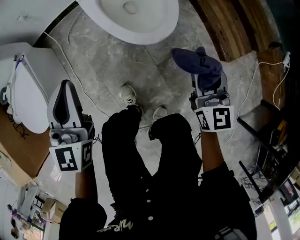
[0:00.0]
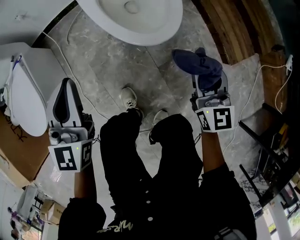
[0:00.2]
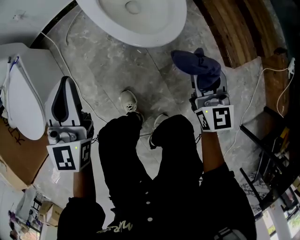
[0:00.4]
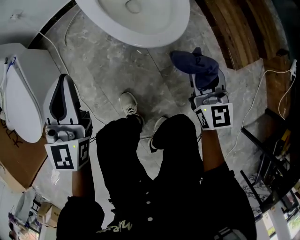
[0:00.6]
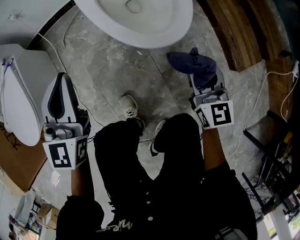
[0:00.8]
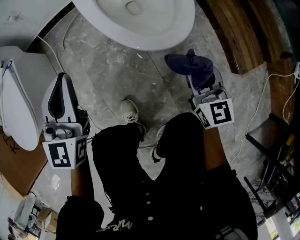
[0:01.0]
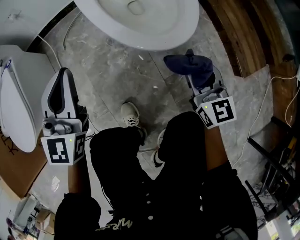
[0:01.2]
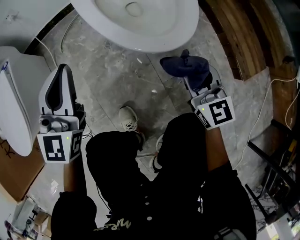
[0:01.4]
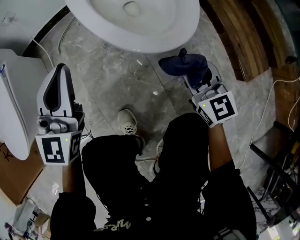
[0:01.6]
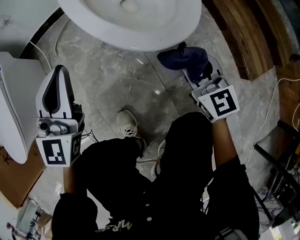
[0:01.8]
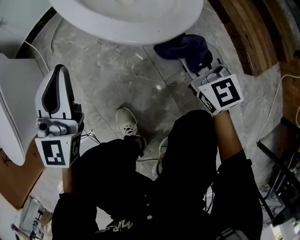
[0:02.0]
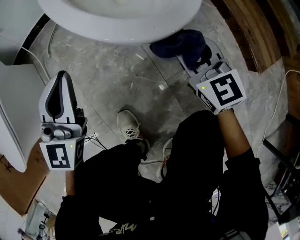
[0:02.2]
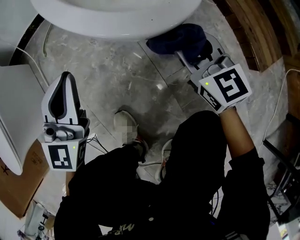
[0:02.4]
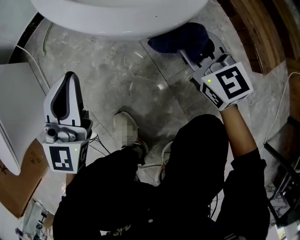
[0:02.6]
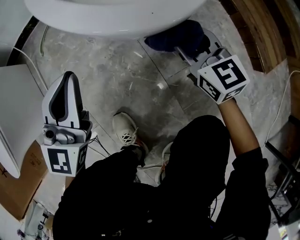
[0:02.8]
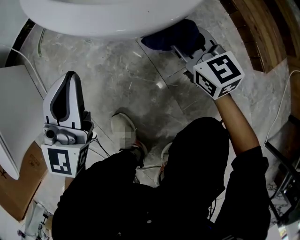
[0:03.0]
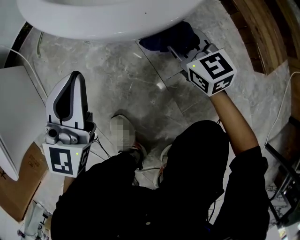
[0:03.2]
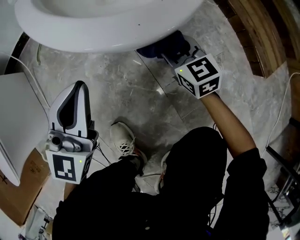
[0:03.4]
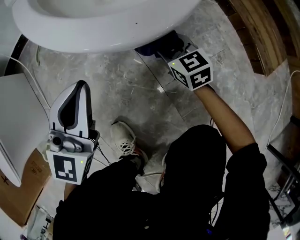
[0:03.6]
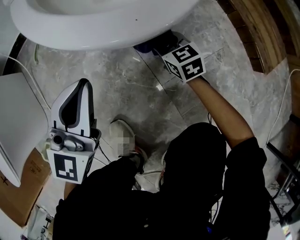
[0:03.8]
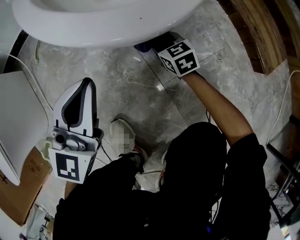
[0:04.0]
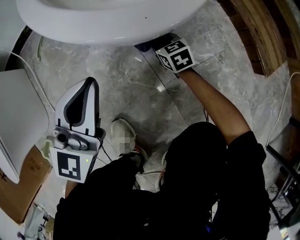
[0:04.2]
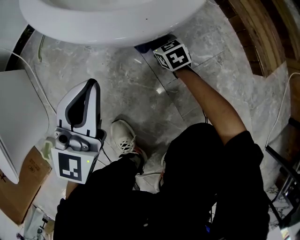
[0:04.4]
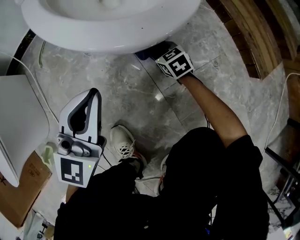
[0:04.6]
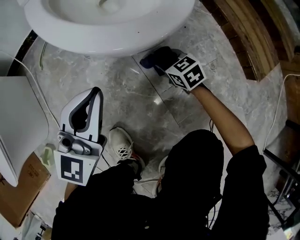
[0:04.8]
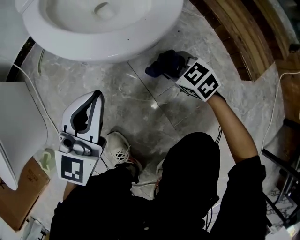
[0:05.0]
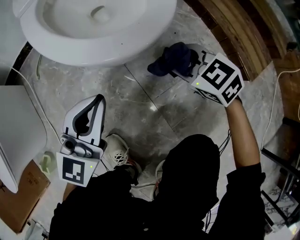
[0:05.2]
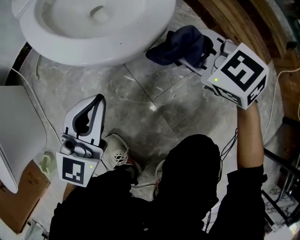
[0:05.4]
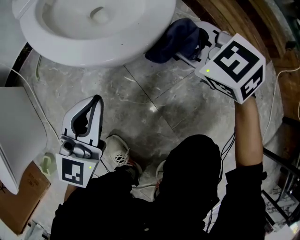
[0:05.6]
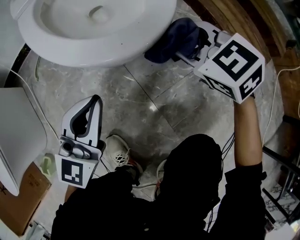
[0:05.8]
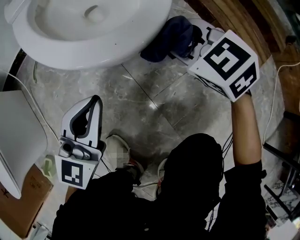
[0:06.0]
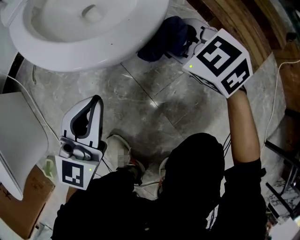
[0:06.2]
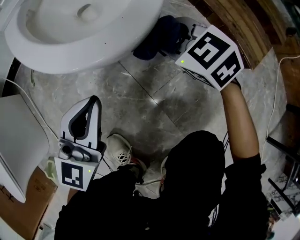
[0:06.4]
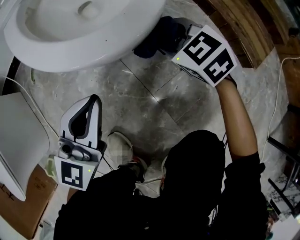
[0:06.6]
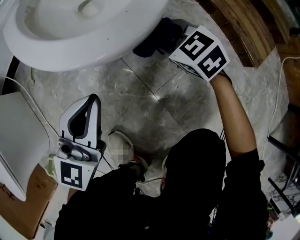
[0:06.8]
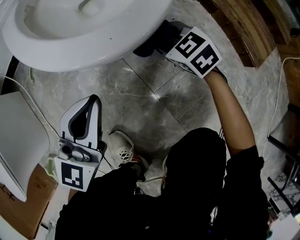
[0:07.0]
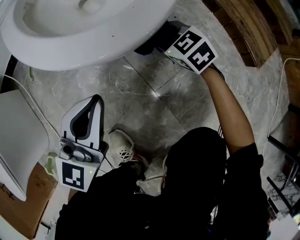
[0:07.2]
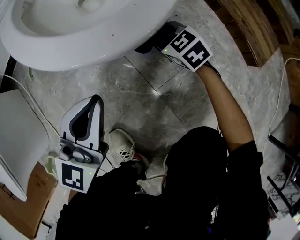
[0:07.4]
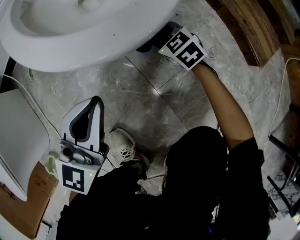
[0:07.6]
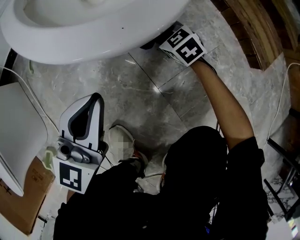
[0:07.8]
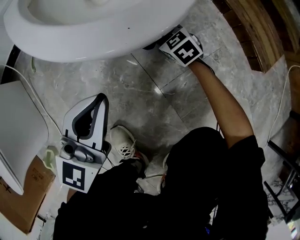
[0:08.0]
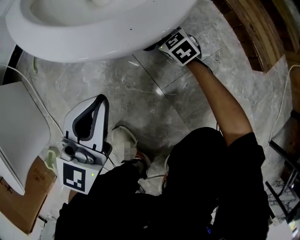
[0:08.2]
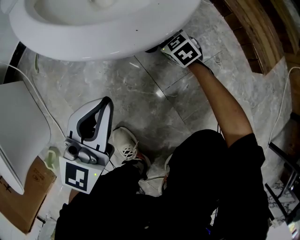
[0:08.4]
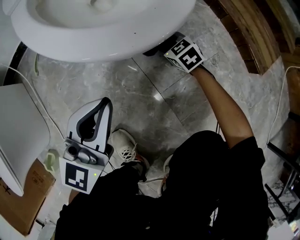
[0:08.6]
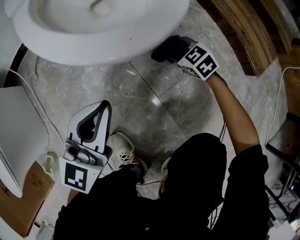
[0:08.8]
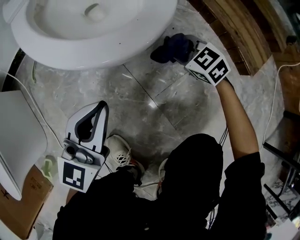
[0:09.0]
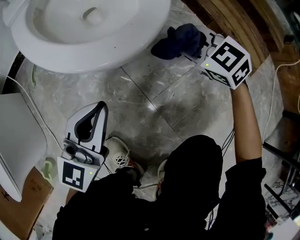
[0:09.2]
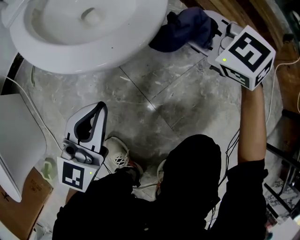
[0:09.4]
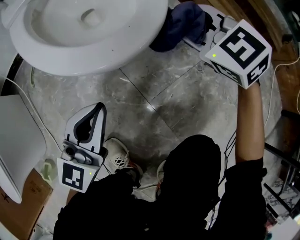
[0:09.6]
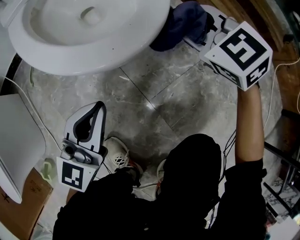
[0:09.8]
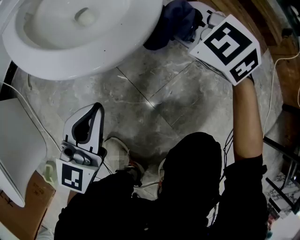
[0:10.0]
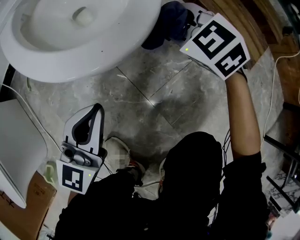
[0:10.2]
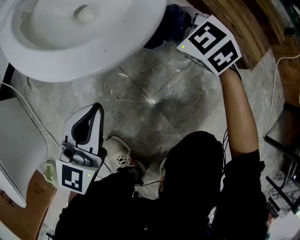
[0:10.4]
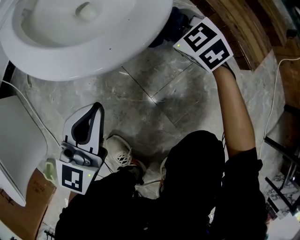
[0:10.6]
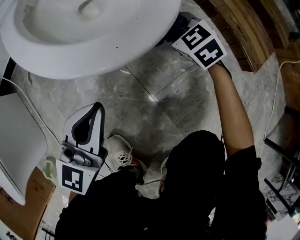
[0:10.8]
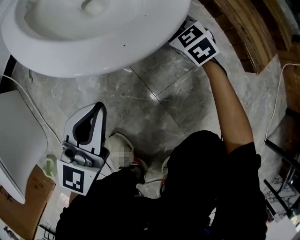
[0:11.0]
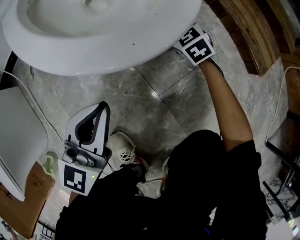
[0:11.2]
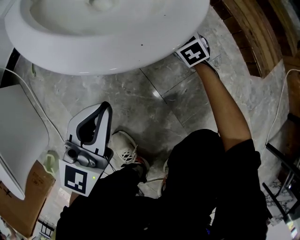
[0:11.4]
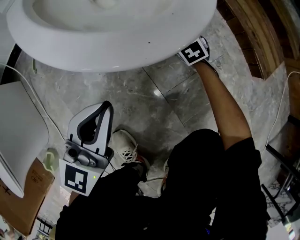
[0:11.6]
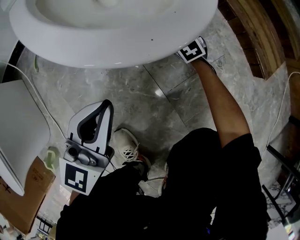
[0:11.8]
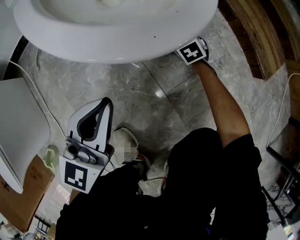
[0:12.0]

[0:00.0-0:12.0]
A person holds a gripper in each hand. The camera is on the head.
0:00.0 to 0:01.6: The grippers both shift downward by about 20 cm. The right gripper swivels some 20 degrees.
0:01.6 to 0:03.0: The left gripper heads downward and to the right, covering about 15 cm; the right gripper shifts approximately 15 cm downward and forward.
0:03.0 to 0:04.4: The right gripper is displaced downward by about 20 cm, and rotates some 30 degrees.
0:04.4 to 0:06.0: The right gripper travels upward by approximately 30 cm, and changes its angle by roughly 20 degrees.
0:06.0 to 0:07.6: The right gripper moves downward, roughly 20 cm.
0:07.6 to 0:09.0: The right gripper moves upward and to the right, some 10 cm.
0:09.0 to 0:10.4: The right gripper goes approximately 10 cm upward.
0:10.4 to 0:12.0: The right gripper shifts about 20 cm downward.

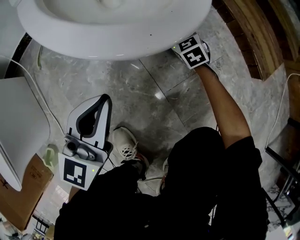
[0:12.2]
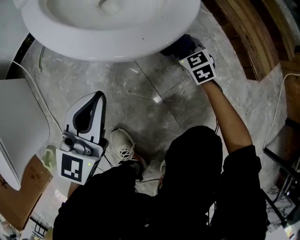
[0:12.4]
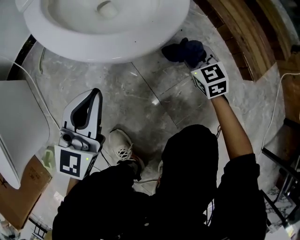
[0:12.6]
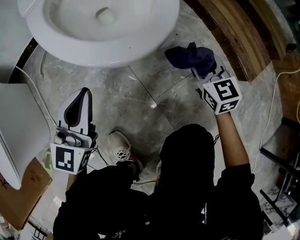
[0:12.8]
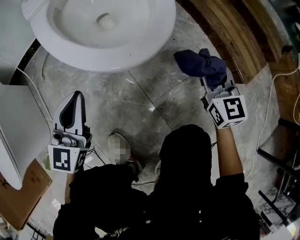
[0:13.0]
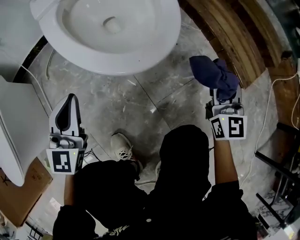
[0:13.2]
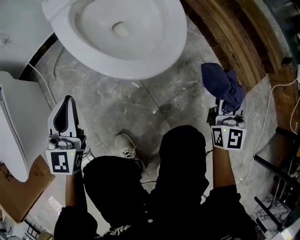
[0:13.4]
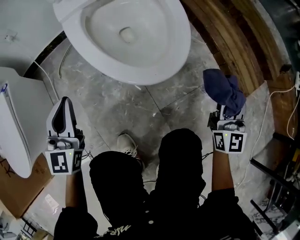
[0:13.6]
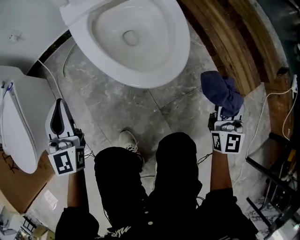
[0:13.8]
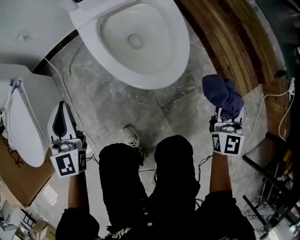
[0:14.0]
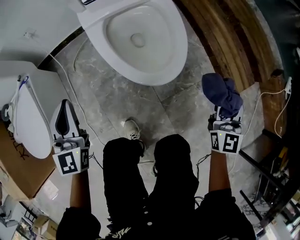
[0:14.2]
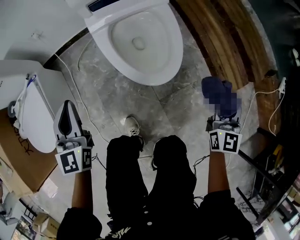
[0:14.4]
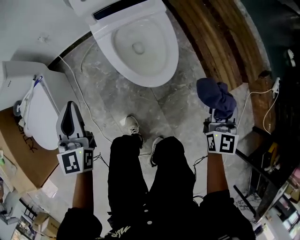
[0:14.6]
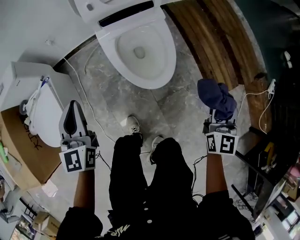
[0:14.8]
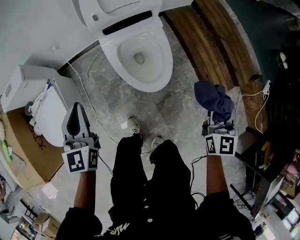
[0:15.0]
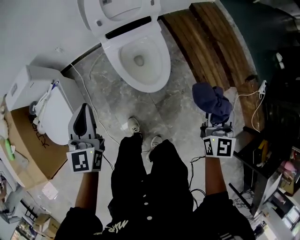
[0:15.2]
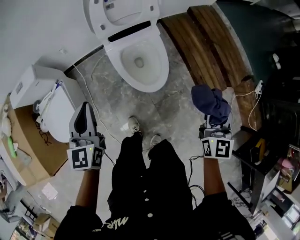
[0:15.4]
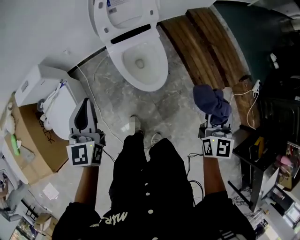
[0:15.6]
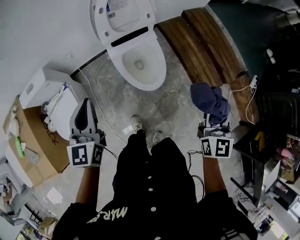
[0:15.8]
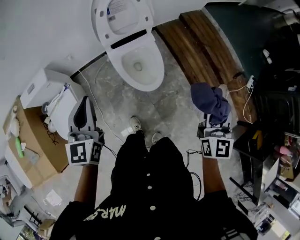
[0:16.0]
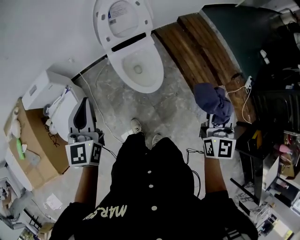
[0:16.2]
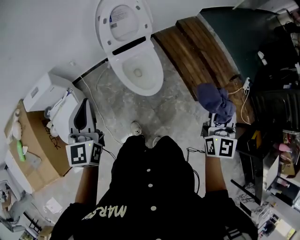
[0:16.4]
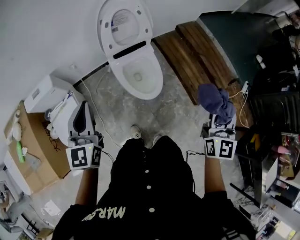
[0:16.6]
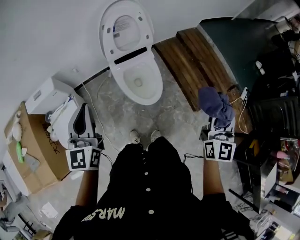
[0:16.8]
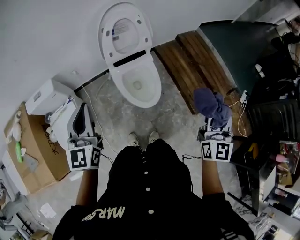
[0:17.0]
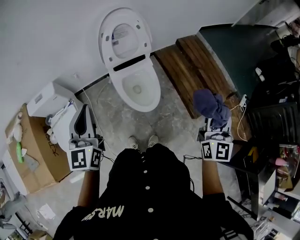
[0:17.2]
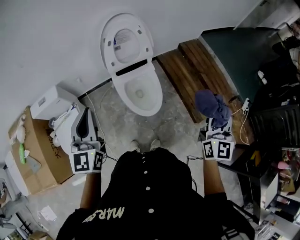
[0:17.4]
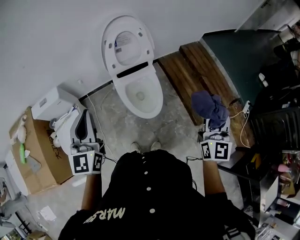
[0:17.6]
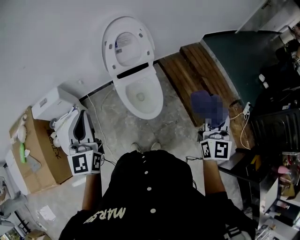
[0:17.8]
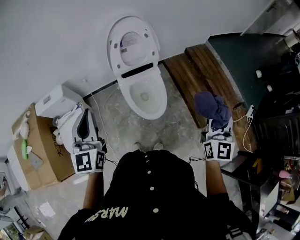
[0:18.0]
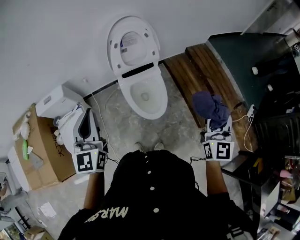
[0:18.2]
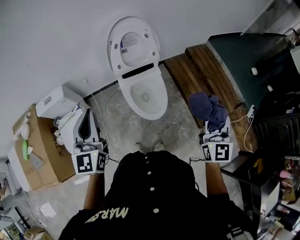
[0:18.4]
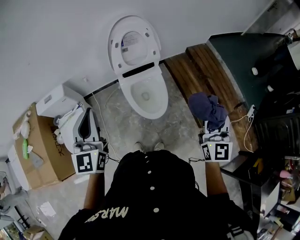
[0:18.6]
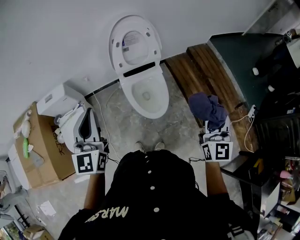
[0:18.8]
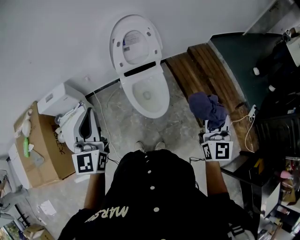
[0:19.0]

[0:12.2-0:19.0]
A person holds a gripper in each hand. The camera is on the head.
0:12.2 to 0:13.6: The right gripper travels upward by roughly 35 cm, and tilts its fingers about 50 degrees upward. Meanwhile the left gripper heads to the left and upward, covering some 20 cm, and swivels roughly 30 degrees.
0:13.6 to 0:15.0: Both grippers travel together upward, roughly 35 cm. The left gripper swivels about 20 degrees.
0:15.0 to 0:16.2: The two grippers go roughly 25 cm upward.
0:16.2 to 0:17.6: The two grippers go about 5 cm upward.
0:17.6 to 0:19.0: The grippers stay close to where they were, moving slightly.

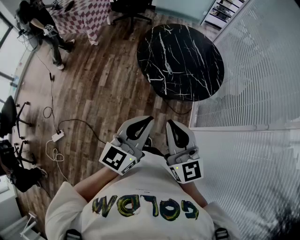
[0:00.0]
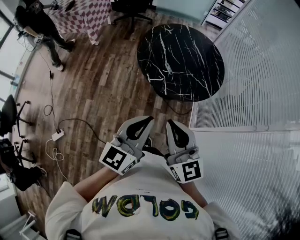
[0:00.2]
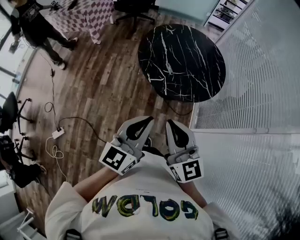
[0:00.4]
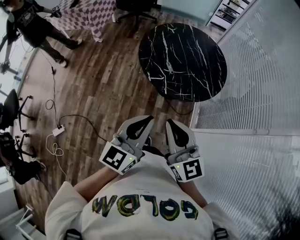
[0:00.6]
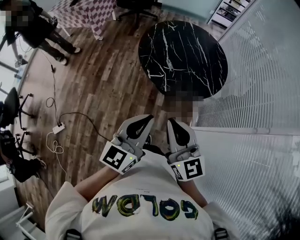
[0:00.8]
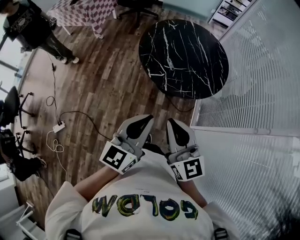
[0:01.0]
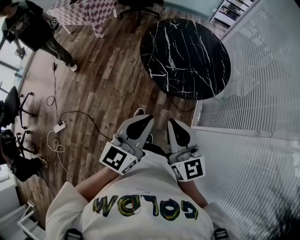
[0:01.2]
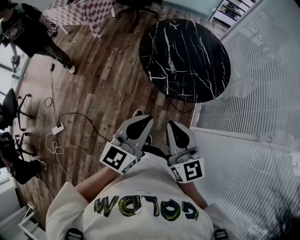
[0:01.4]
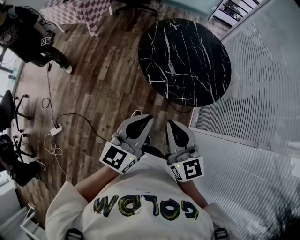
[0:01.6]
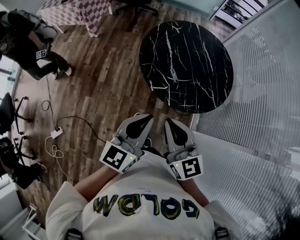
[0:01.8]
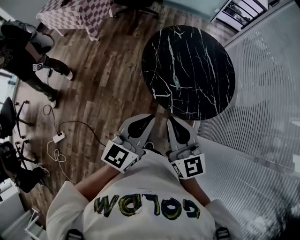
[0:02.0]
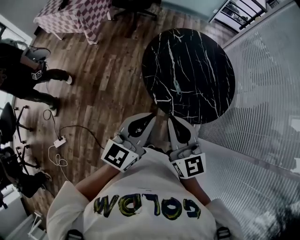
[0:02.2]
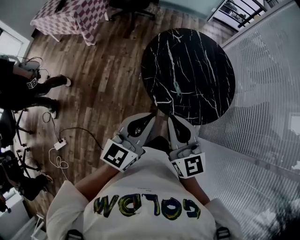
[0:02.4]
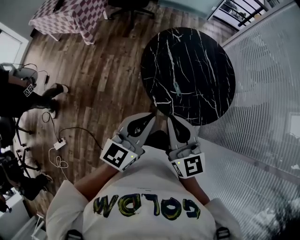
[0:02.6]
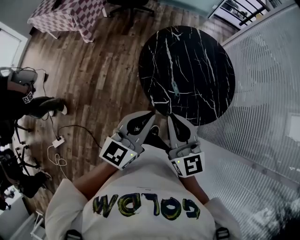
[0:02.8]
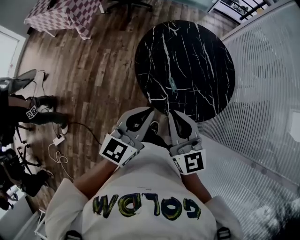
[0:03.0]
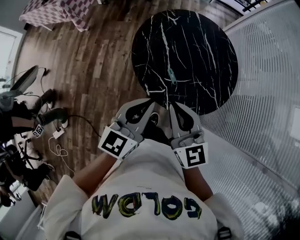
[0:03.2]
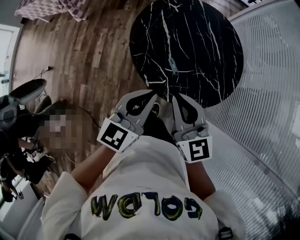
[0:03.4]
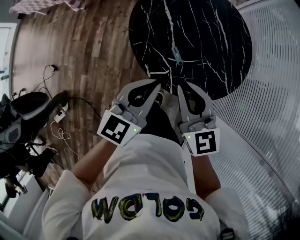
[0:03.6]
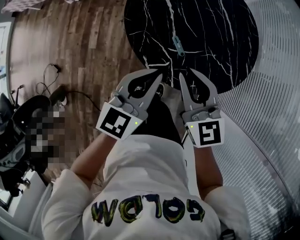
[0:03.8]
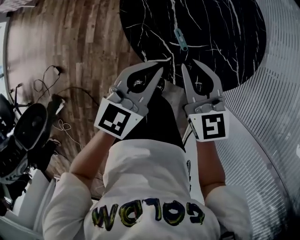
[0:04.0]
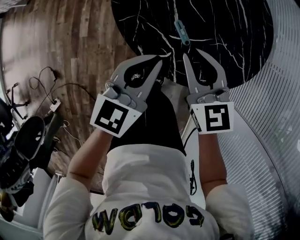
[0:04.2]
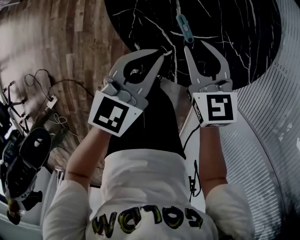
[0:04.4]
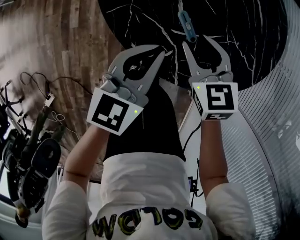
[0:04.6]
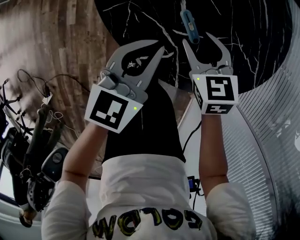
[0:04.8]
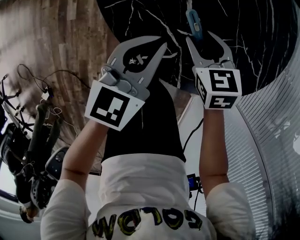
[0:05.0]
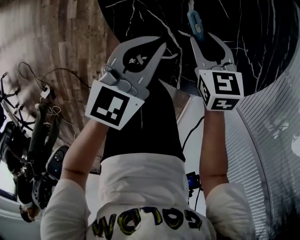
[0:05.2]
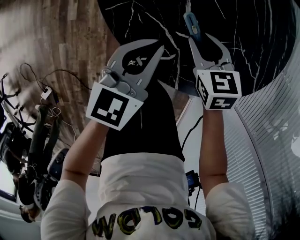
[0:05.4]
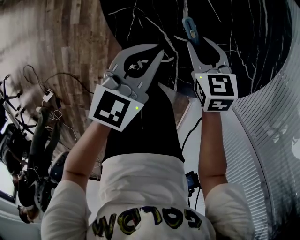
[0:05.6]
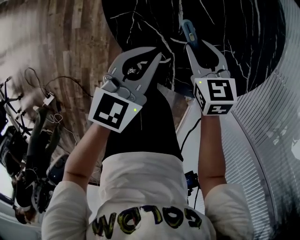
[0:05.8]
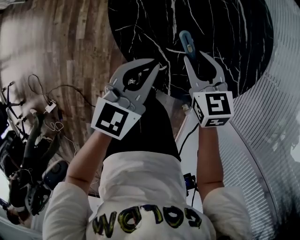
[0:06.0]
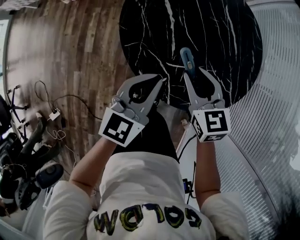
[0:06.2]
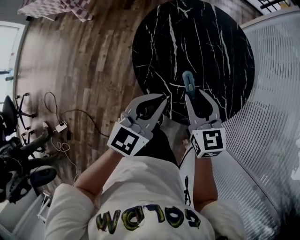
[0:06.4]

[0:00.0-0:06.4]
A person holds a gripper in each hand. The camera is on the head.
0:00.0 to 0:01.6: Both grippers move forward, about 10 cm.
0:01.6 to 0:03.2: The two grippers go roughly 20 cm forward.
0:03.2 to 0:04.8: The grippers both shift downward by some 35 cm. The right gripper tips its fingers downward by approximately 40 degrees, and opens its fingers.
0:04.8 to 0:06.4: The two grippers go approximately 25 cm upward.
